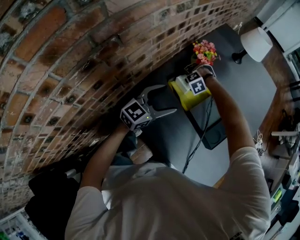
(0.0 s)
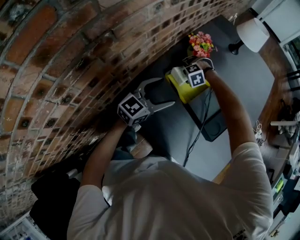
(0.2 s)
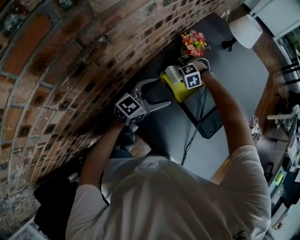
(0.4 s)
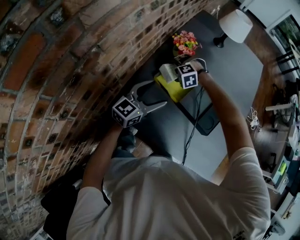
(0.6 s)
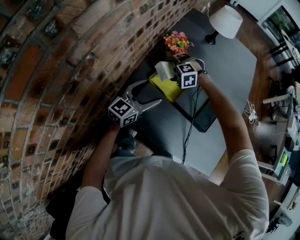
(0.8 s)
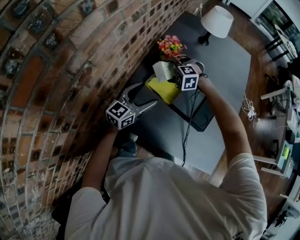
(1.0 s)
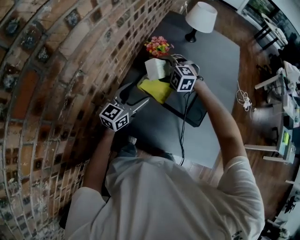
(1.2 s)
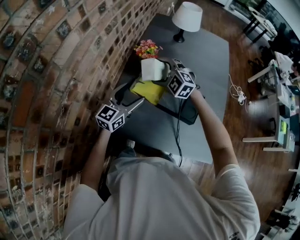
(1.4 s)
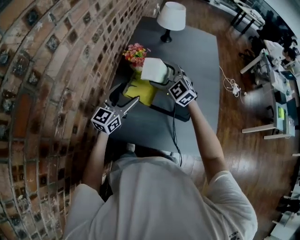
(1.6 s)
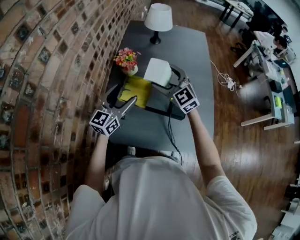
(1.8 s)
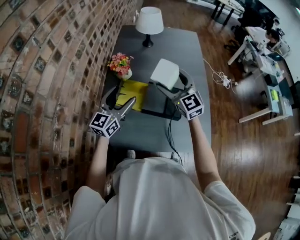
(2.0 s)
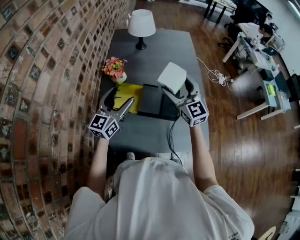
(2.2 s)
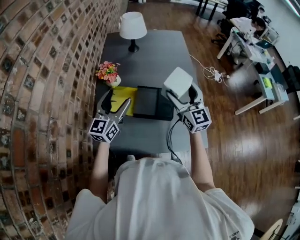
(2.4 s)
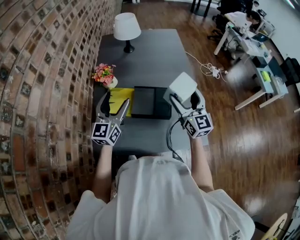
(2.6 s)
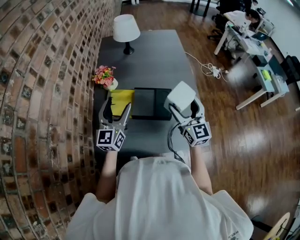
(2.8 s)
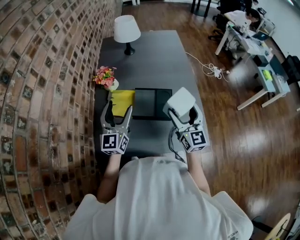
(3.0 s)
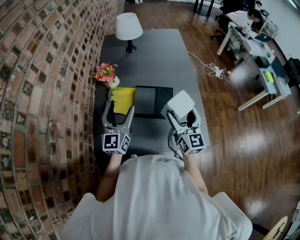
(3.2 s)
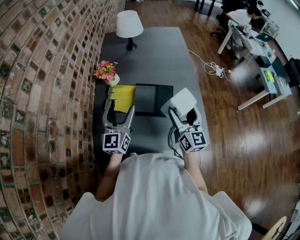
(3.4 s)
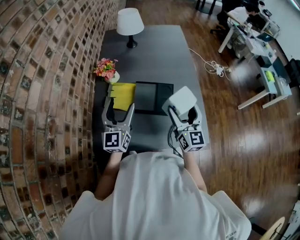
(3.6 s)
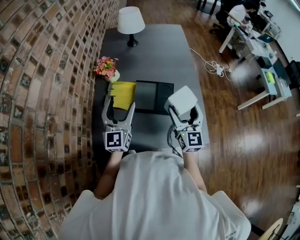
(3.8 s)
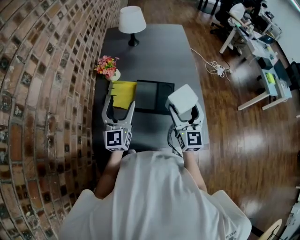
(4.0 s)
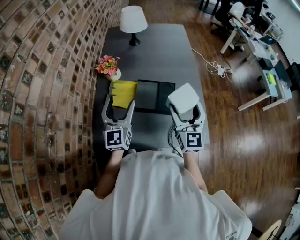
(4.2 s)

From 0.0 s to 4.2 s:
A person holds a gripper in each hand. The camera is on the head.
From 0.0 s to 1.4 s: The left gripper is displaced upward by about 5 cm, while the right gripper heads upward, covering approximately 25 cm, and tips its fingers upward by roughly 50 degrees.
From 1.4 s to 2.8 s: The left gripper moves to the right and upward, approximately 15 cm, while the right gripper heads to the right and backward, covering roughly 35 cm, and angles its fingers upward, by approximately 40 degrees.
From 2.8 s to 4.2 s: The grippers move only a little.

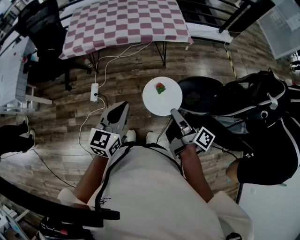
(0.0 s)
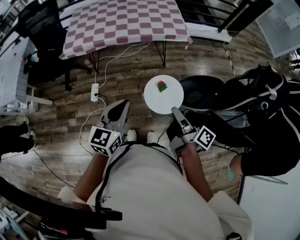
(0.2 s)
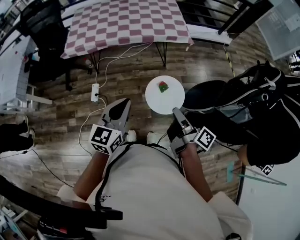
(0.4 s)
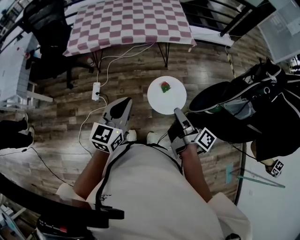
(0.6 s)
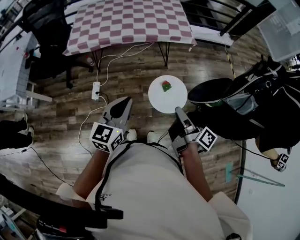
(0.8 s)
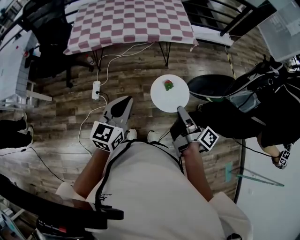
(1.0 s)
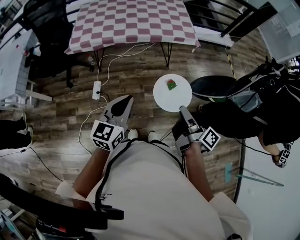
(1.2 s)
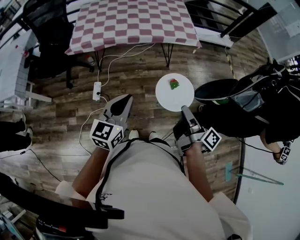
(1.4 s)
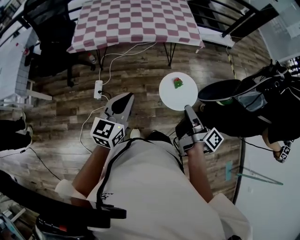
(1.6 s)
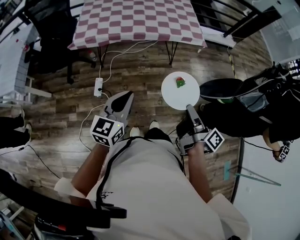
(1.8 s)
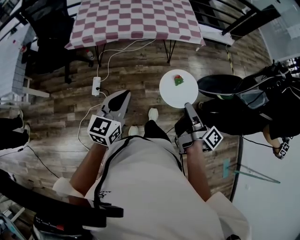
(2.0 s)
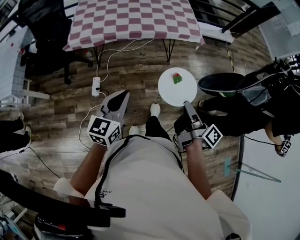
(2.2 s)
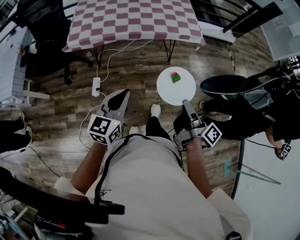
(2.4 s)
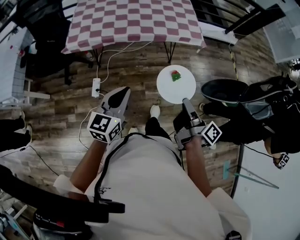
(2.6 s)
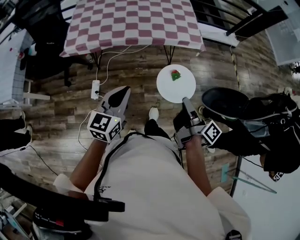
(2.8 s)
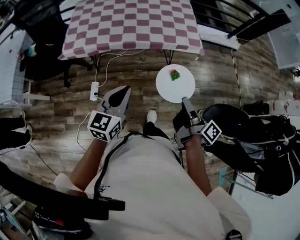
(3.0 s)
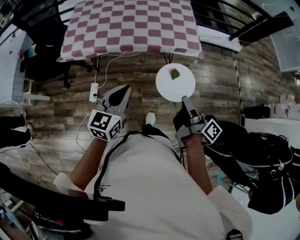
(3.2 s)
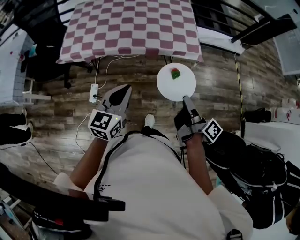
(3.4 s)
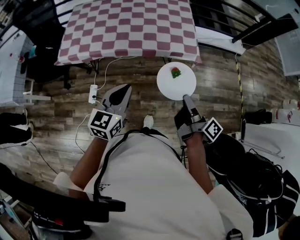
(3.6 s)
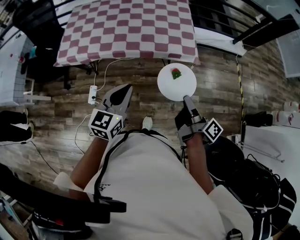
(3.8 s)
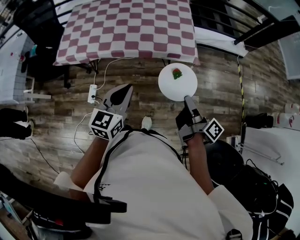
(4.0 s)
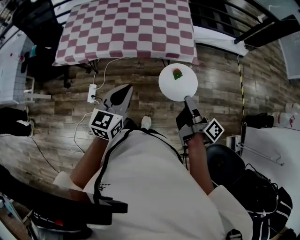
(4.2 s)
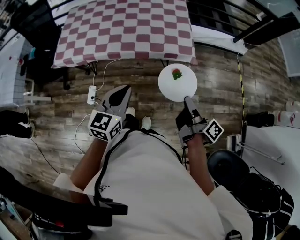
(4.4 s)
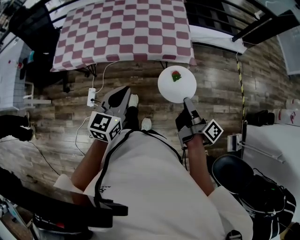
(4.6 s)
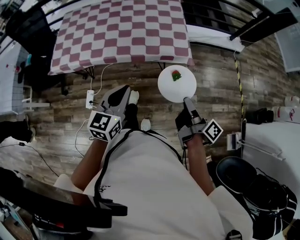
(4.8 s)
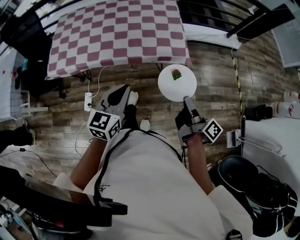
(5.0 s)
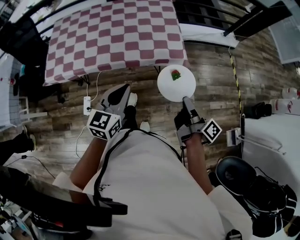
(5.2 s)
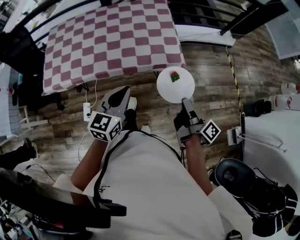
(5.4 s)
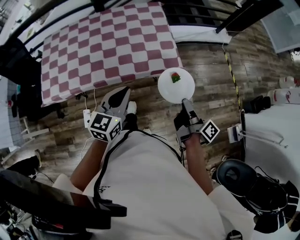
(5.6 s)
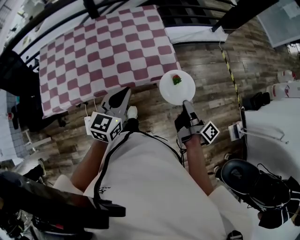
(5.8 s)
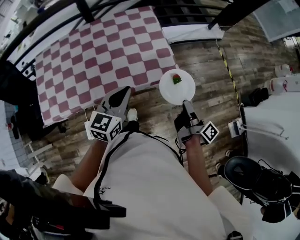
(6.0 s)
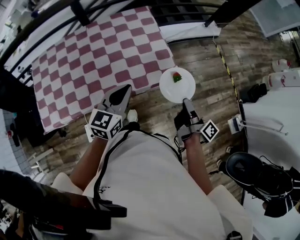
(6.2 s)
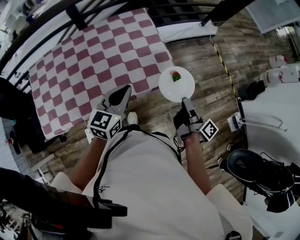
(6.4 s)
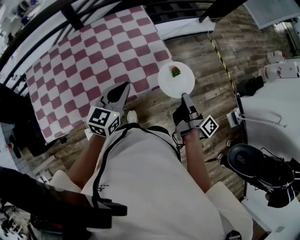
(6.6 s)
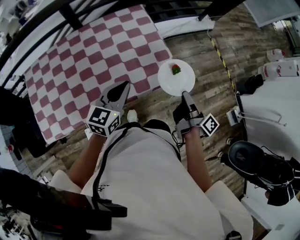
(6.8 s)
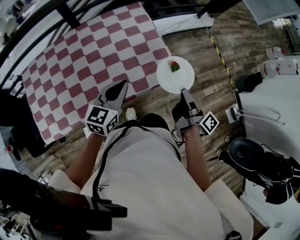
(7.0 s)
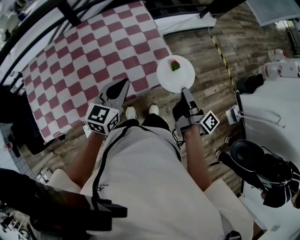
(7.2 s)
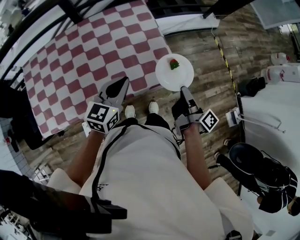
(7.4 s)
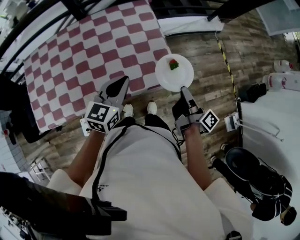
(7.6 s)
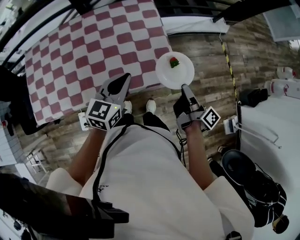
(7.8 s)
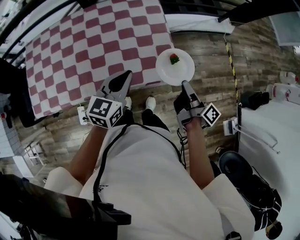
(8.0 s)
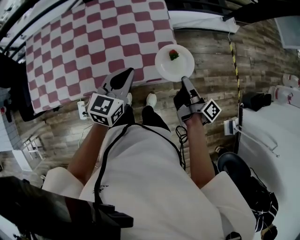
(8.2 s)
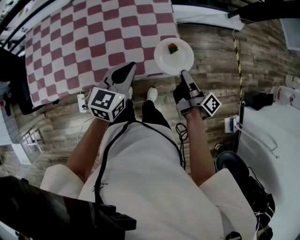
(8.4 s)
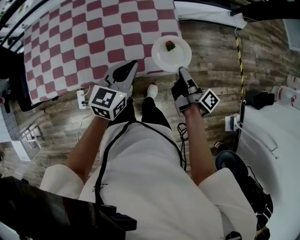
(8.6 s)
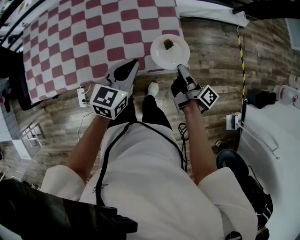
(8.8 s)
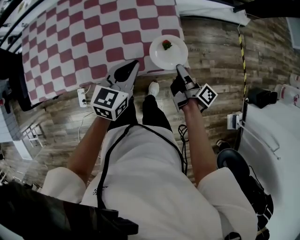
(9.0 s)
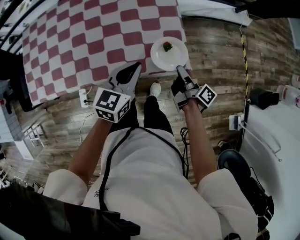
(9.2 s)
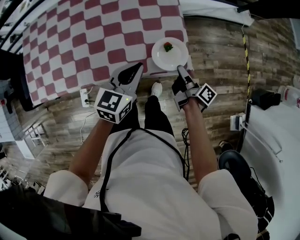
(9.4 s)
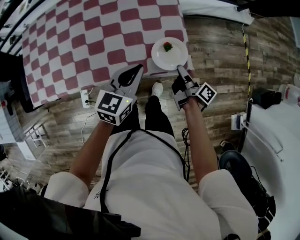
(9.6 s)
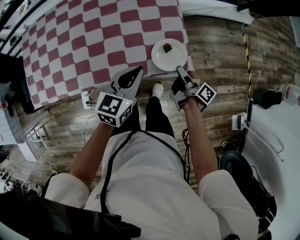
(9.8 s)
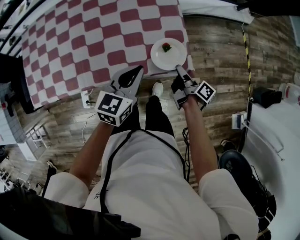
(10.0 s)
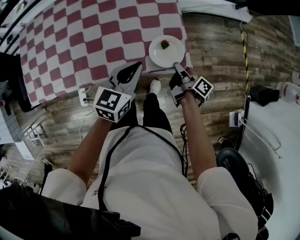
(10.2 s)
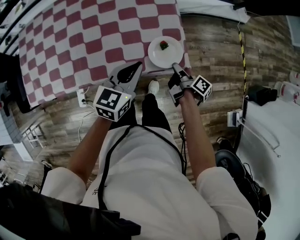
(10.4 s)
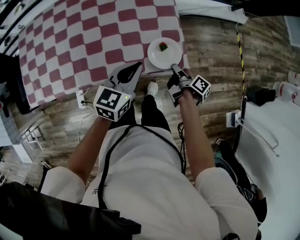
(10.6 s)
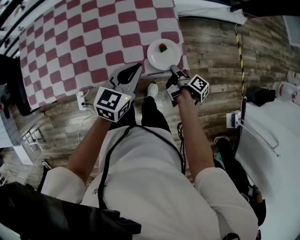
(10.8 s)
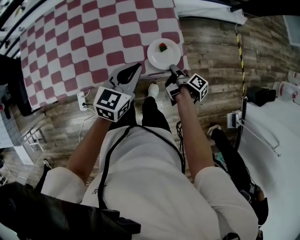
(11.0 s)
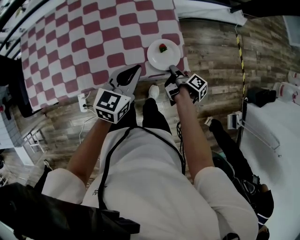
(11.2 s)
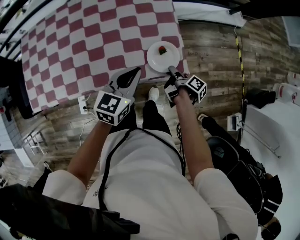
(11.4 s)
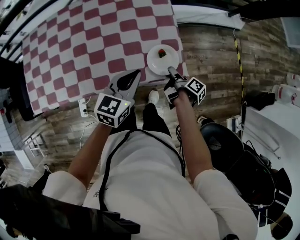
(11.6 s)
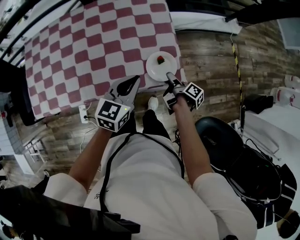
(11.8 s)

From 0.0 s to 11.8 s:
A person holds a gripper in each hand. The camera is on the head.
From 0.0 s to 1.4 s: The left gripper changes place by roughly 10 cm.
From 1.4 s to 3.0 s: The left gripper shifts by about 15 cm.
From 3.0 s to 4.4 s: The left gripper ends up roughly 20 cm from where it was.
From 4.4 s to 6.0 s: The left gripper moves some 25 cm.
From 6.0 s to 7.4 s: The left gripper shifts by some 10 cm.
From 7.4 s to 8.8 s: The left gripper shifts by approximately 10 cm.

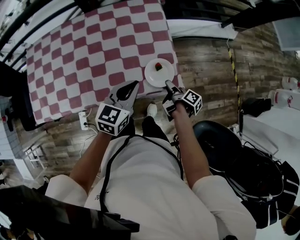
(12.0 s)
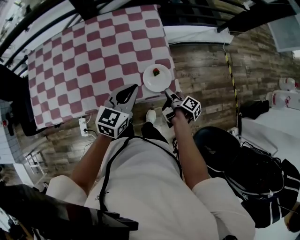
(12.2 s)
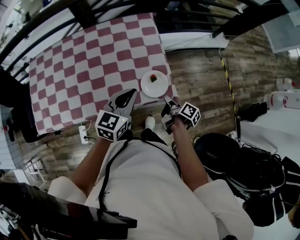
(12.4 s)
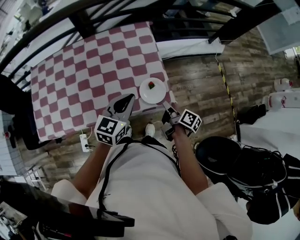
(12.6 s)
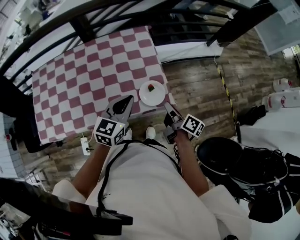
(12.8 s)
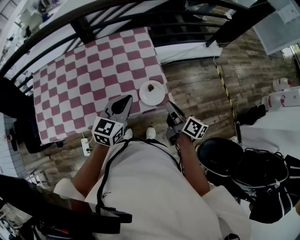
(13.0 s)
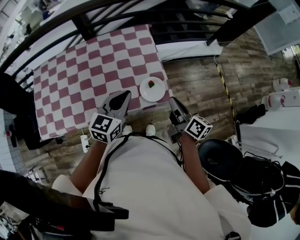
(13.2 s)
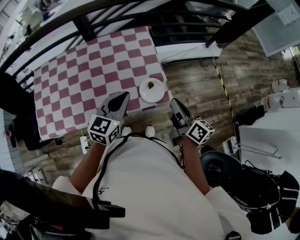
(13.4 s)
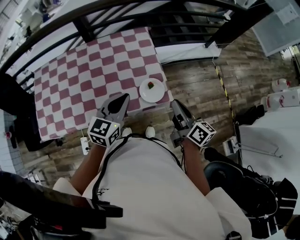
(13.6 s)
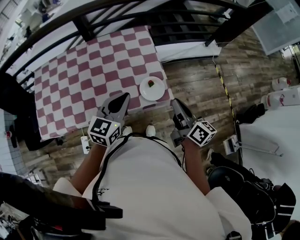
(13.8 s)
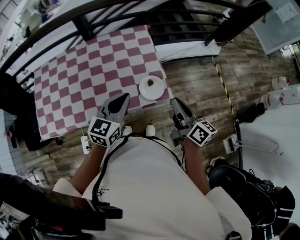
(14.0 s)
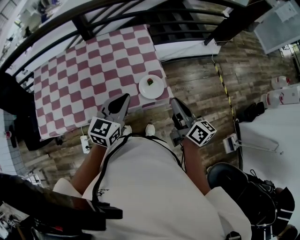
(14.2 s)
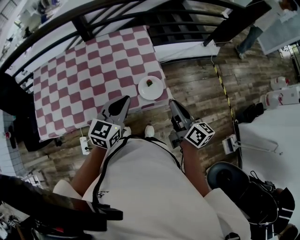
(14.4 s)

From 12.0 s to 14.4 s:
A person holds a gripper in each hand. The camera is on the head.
From 12.0 s to 13.2 s: The left gripper shifts approximately 10 cm upward.

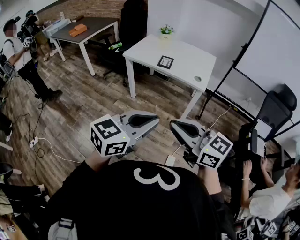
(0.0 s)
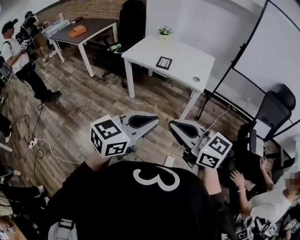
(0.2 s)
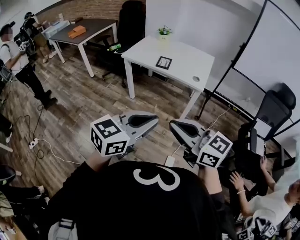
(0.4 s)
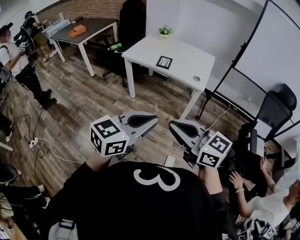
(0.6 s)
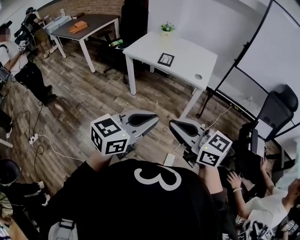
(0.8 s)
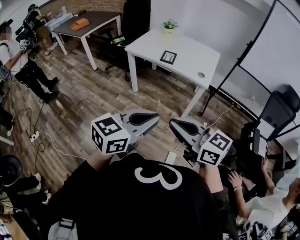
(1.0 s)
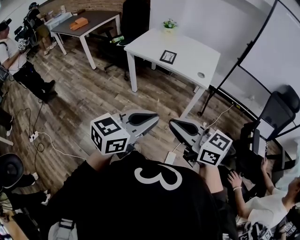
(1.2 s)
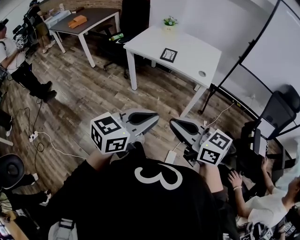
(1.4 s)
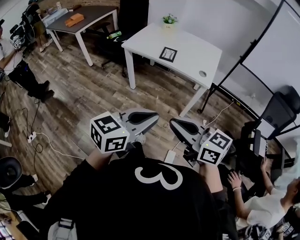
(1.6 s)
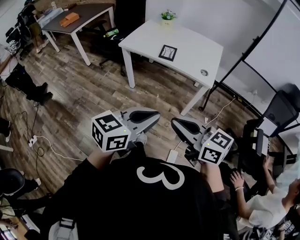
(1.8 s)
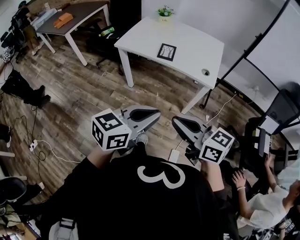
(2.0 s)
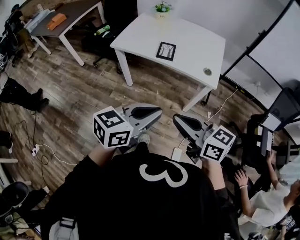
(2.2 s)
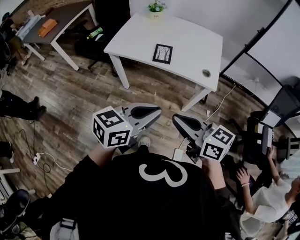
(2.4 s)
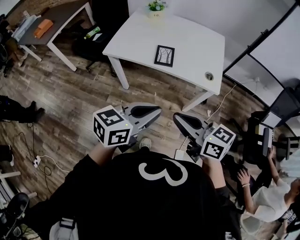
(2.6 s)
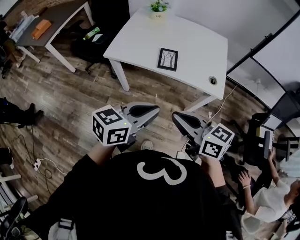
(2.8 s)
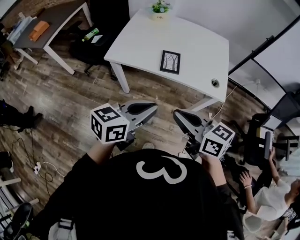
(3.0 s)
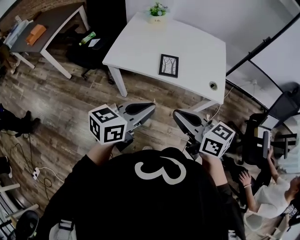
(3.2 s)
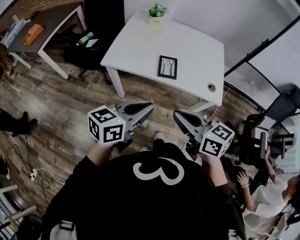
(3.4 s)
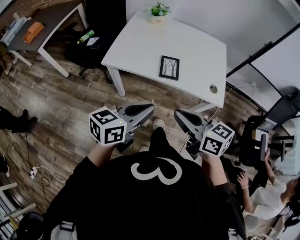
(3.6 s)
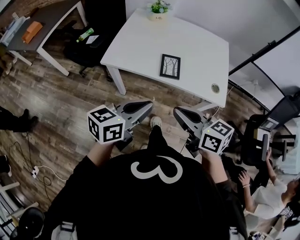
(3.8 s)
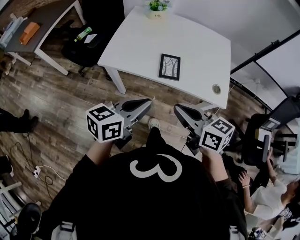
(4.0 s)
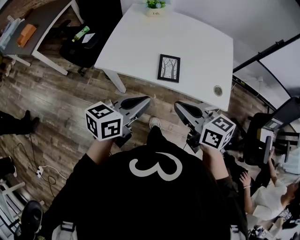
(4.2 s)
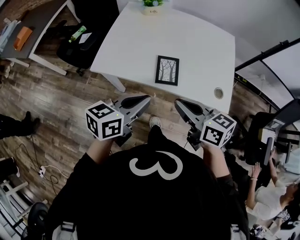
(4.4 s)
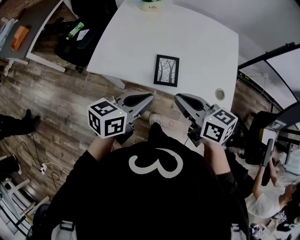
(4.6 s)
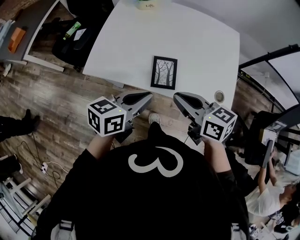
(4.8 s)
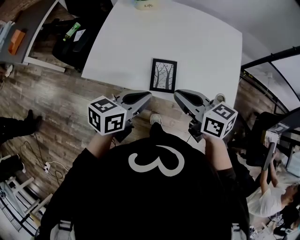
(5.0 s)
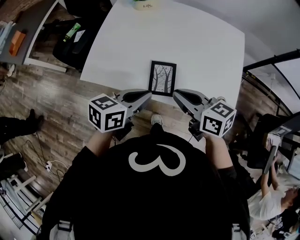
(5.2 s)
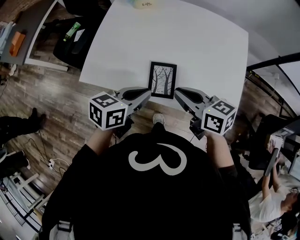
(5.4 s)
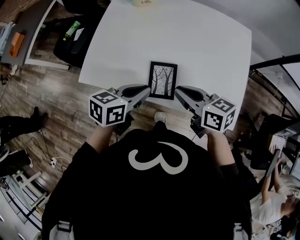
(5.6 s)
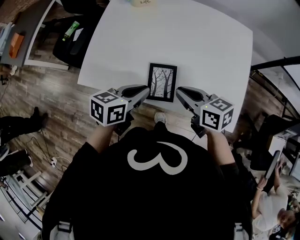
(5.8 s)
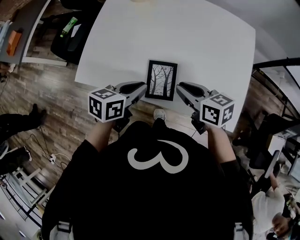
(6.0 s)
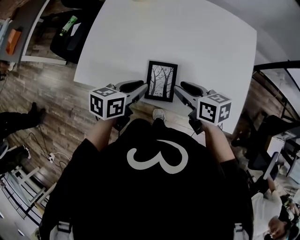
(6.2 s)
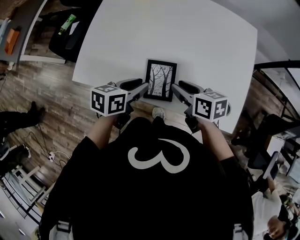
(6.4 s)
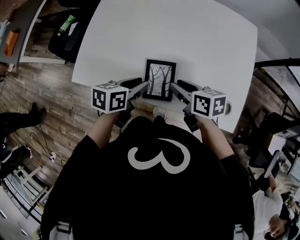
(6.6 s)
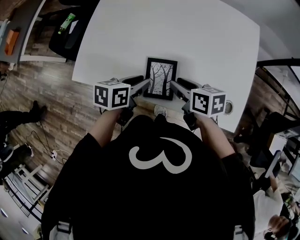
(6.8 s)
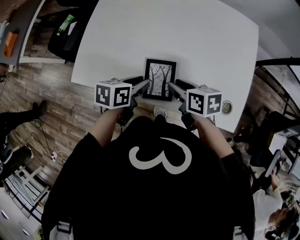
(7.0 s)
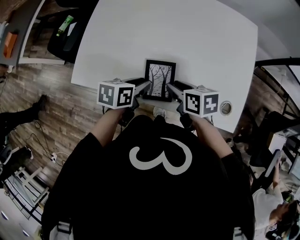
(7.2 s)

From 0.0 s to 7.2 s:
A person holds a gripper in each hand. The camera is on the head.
From 0.0 s to 1.4 s: The left gripper shifts by about 5 cm. The right gripper ends up roughly 5 cm from where it was.
From 1.4 s to 2.8 s: Both grippers move forward, some 40 cm.
From 2.8 s to 4.4 s: Both grippers move forward, approximately 25 cm.
From 4.4 s to 5.8 s: Both grippers move forward and downward, about 25 cm.
From 5.8 s to 7.2 s: The grippers both shift downward by about 10 cm. The right gripper changes its angle by about 20 degrees, and opens, while the left gripper opens its fingers.
